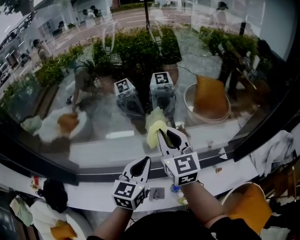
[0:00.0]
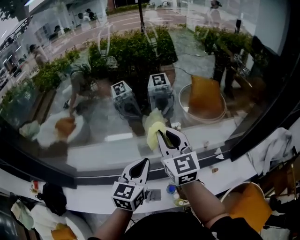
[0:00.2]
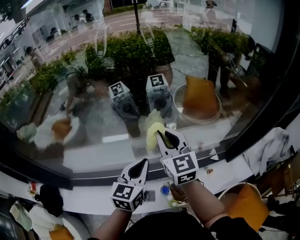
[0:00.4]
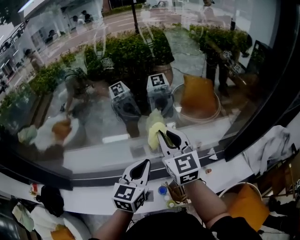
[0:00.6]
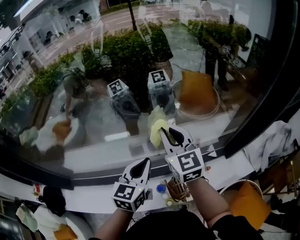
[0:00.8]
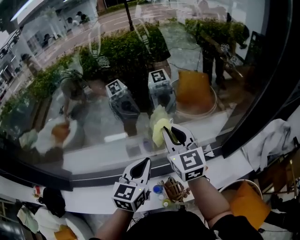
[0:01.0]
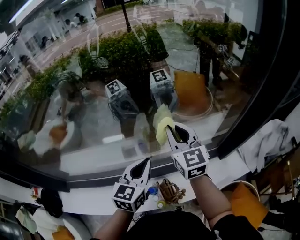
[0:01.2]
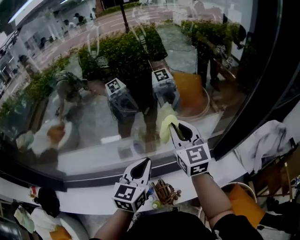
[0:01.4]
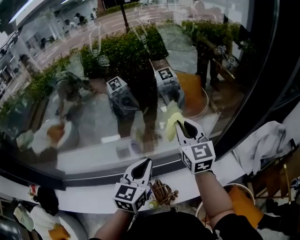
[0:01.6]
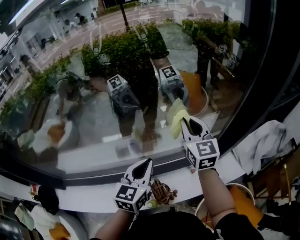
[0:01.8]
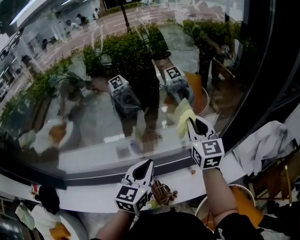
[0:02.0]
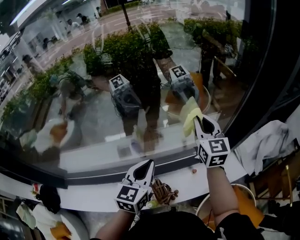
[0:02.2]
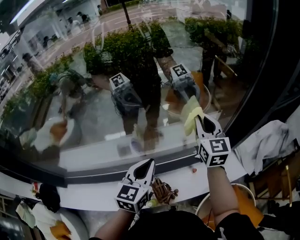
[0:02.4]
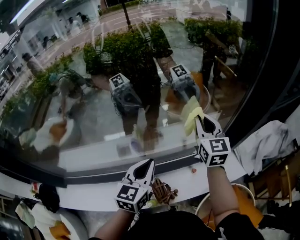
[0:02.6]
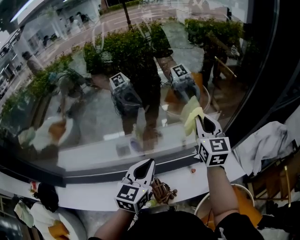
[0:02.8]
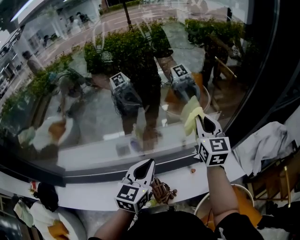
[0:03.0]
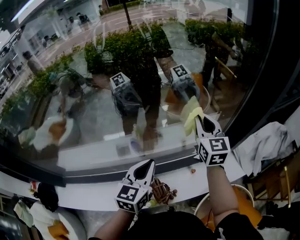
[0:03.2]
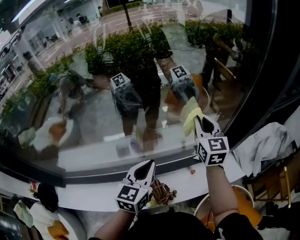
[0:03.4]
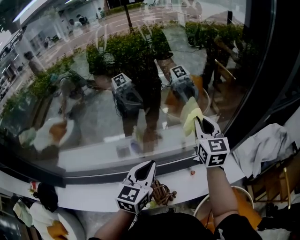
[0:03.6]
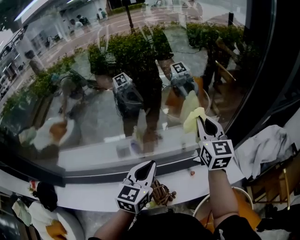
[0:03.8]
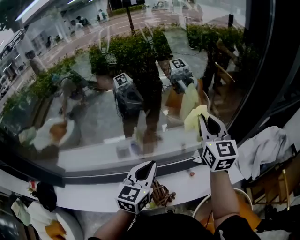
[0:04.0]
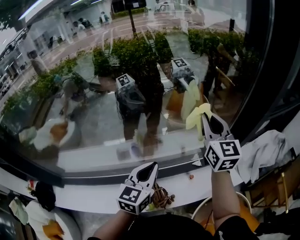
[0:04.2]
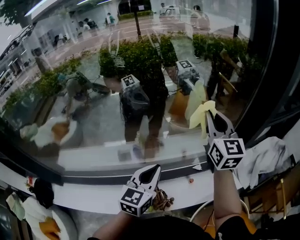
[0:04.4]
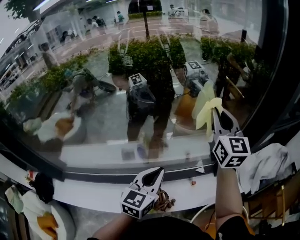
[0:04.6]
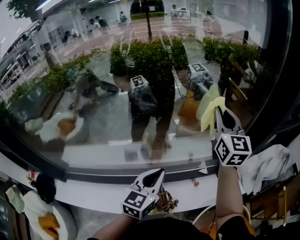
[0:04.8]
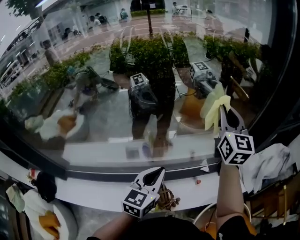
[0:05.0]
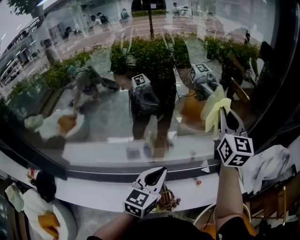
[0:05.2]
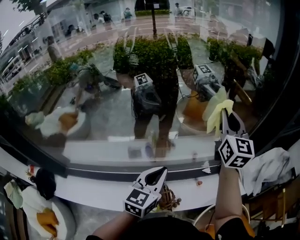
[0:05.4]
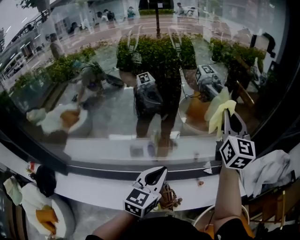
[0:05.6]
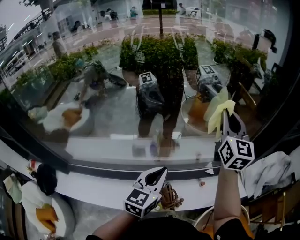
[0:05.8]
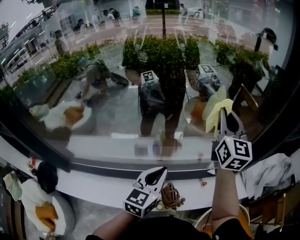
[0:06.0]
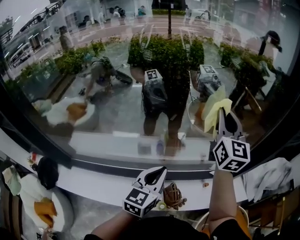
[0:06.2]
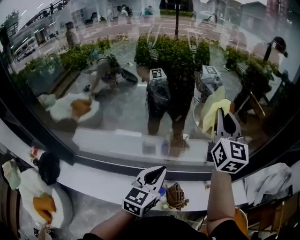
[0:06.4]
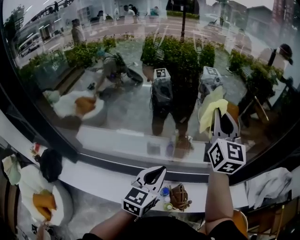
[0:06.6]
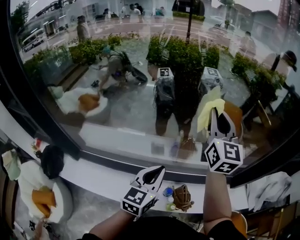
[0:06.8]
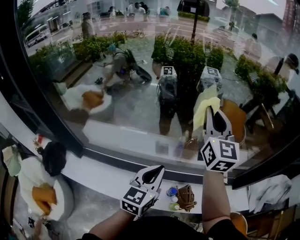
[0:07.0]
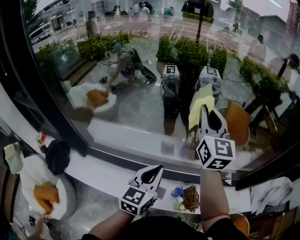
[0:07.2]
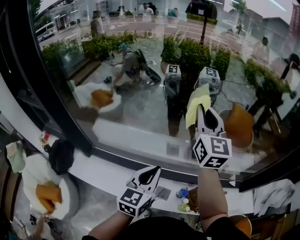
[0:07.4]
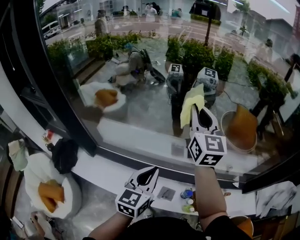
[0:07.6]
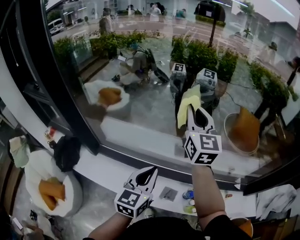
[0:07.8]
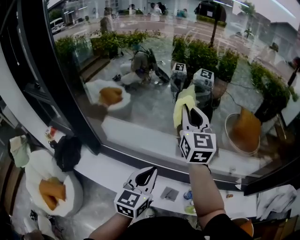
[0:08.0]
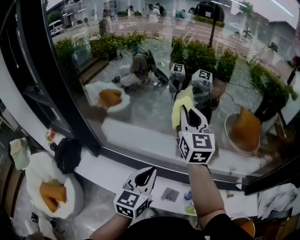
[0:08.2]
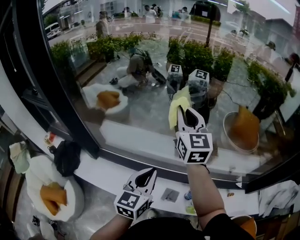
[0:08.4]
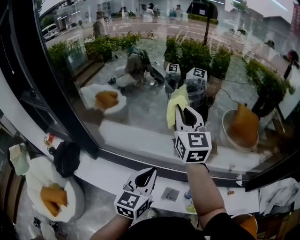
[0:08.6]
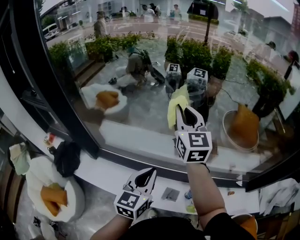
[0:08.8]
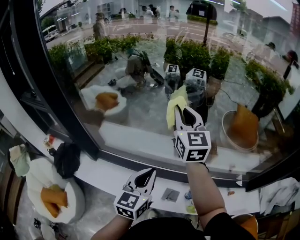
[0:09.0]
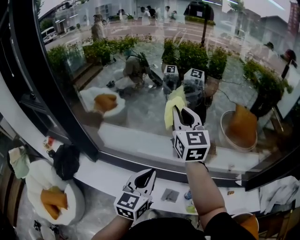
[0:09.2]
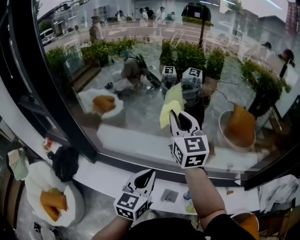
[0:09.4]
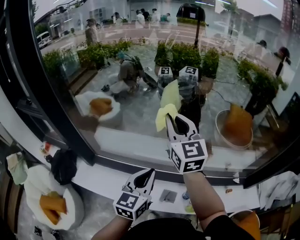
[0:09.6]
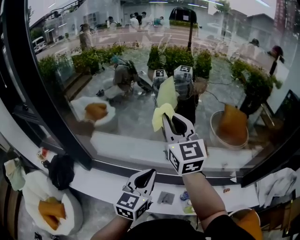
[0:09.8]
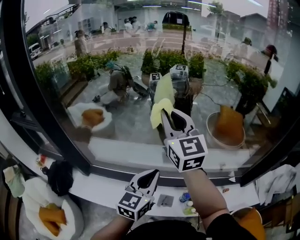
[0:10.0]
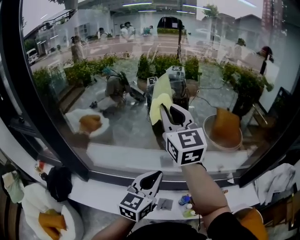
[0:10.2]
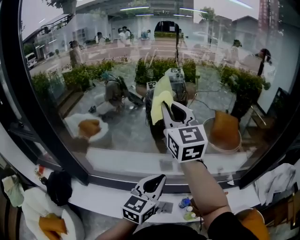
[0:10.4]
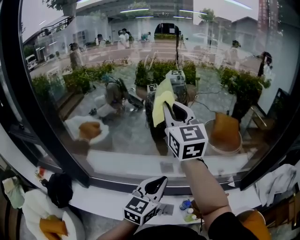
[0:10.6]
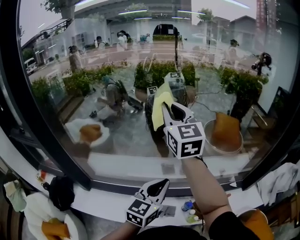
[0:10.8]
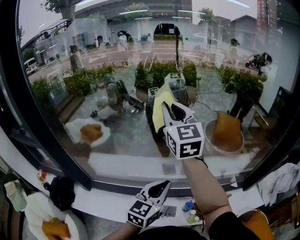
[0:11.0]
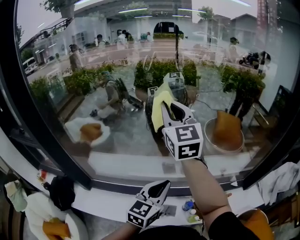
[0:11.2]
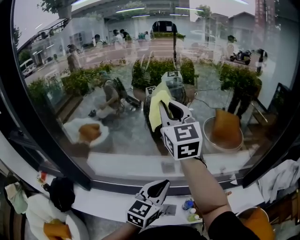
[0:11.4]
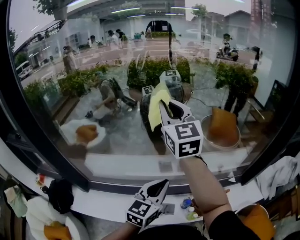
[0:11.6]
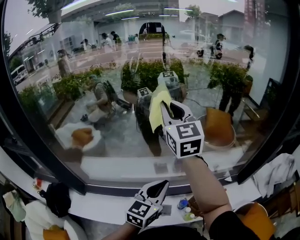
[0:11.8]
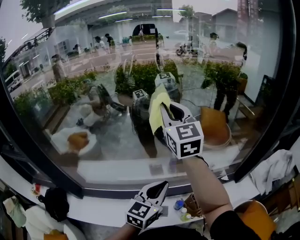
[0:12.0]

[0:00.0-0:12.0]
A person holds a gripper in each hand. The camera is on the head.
0:00.0 to 0:01.6: The two grippers go about 35 cm to the right.
0:01.6 to 0:03.0: The right gripper heads to the right, covering some 10 cm.
0:03.0 to 0:04.4: The right gripper heads upward, covering approximately 10 cm.
0:04.4 to 0:06.0: The left gripper heads to the left and backward, covering roughly 15 cm, while the right gripper travels to the left by about 15 cm.
0:06.0 to 0:07.6: The grippers both shift to the left by about 40 cm. The right gripper swivels some 20 degrees.
0:07.6 to 0:09.0: The right gripper travels to the left by about 10 cm.
0:09.0 to 0:10.4: The left gripper shifts approximately 10 cm to the right and upward, while the right gripper moves upward and to the right, approximately 15 cm.
0:10.4 to 0:12.0: The grippers both shift to the right by about 10 cm.

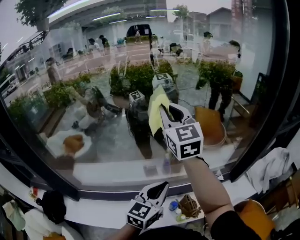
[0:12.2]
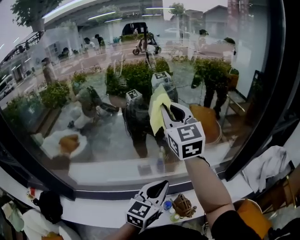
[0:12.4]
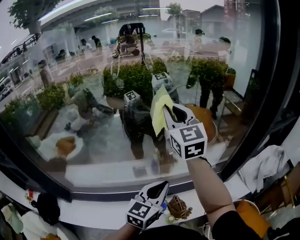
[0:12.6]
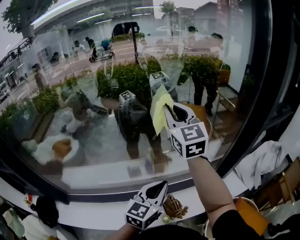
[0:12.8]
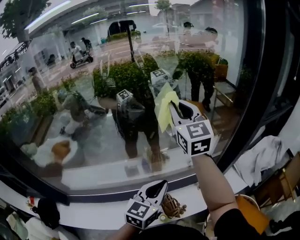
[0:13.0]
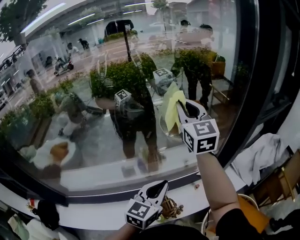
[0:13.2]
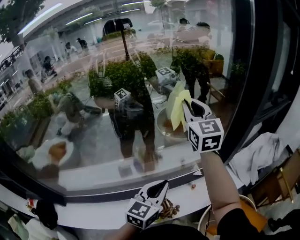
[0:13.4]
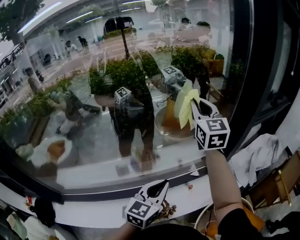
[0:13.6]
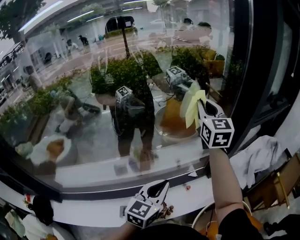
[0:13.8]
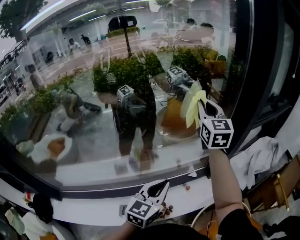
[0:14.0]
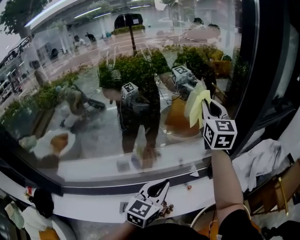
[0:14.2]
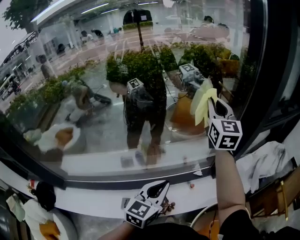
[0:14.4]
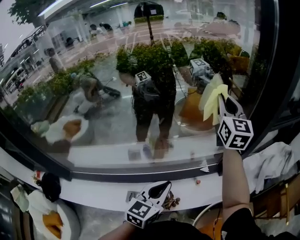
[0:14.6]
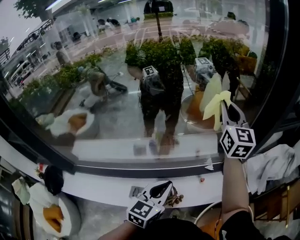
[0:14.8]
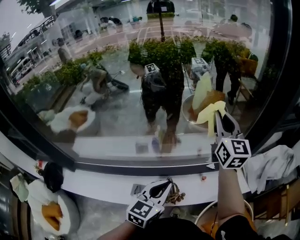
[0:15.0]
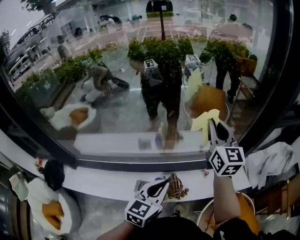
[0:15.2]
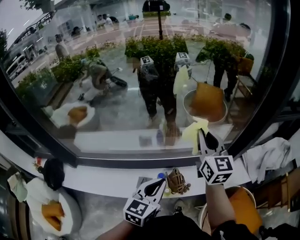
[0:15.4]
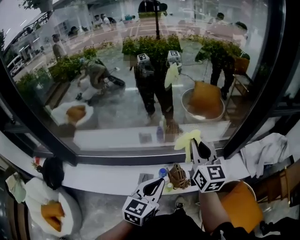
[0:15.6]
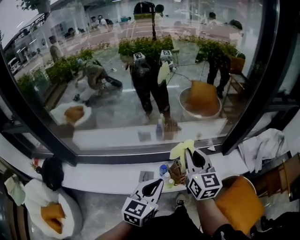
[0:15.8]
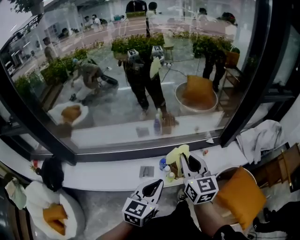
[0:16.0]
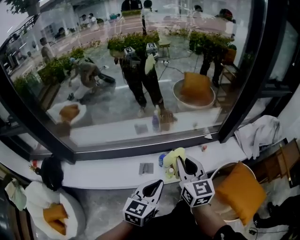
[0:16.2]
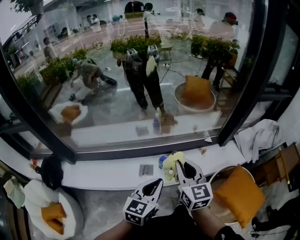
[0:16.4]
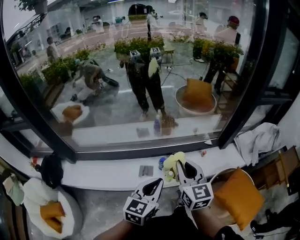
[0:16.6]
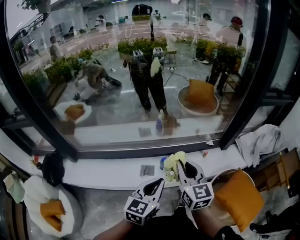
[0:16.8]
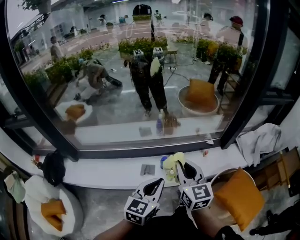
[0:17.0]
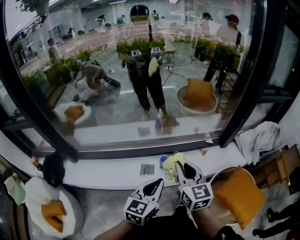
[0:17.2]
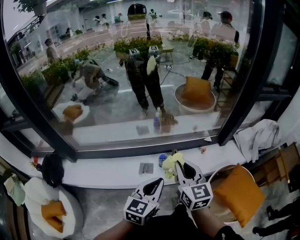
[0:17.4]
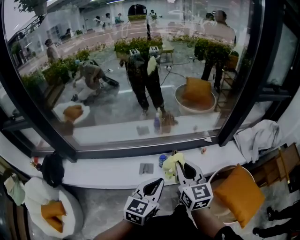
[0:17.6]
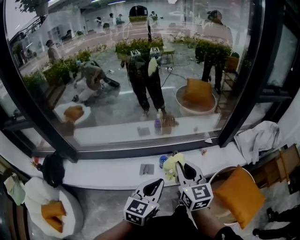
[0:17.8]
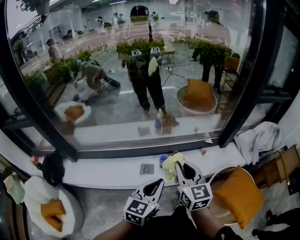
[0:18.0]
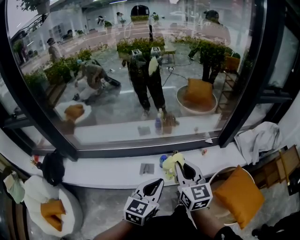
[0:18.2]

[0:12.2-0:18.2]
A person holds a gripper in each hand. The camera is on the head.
0:12.2 to 0:13.8: The left gripper shifts about 30 cm to the right. Meanwhile the right gripper shifts approximately 50 cm to the right, and turns by about 20 degrees.
0:13.8 to 0:15.2: The left gripper shifts approximately 20 cm backward and to the left. The right gripper moves backward, to the left and downward, approximately 25 cm.
0:15.2 to 0:16.6: The right gripper heads backward, to the left and downward, covering about 40 cm. The left gripper shifts approximately 20 cm backward and to the left.
0:16.6 to 0:18.2: The grippers stay close to where they were, moving slightly.

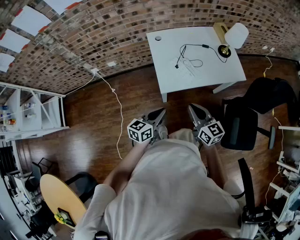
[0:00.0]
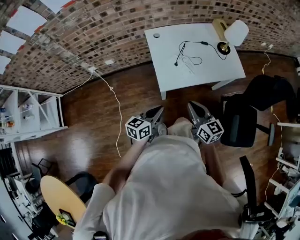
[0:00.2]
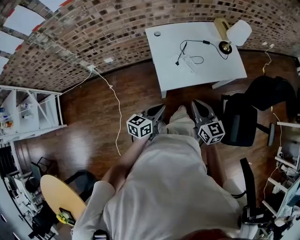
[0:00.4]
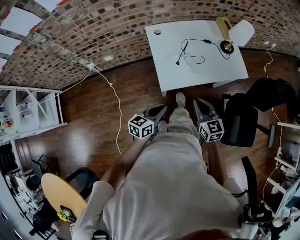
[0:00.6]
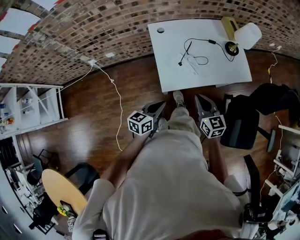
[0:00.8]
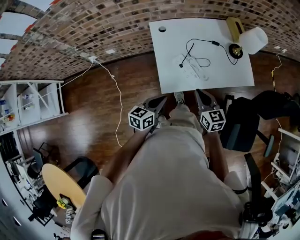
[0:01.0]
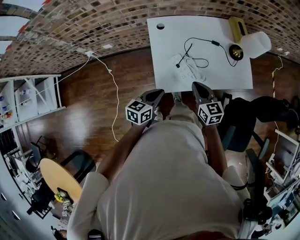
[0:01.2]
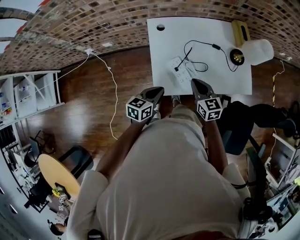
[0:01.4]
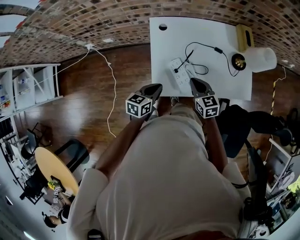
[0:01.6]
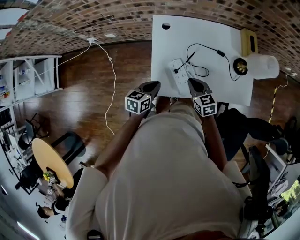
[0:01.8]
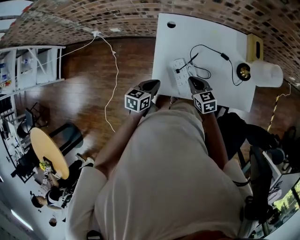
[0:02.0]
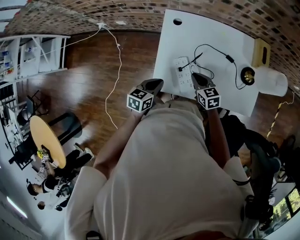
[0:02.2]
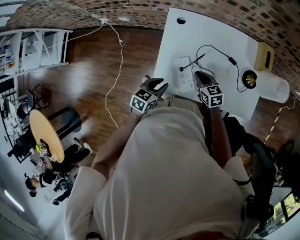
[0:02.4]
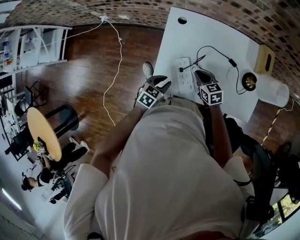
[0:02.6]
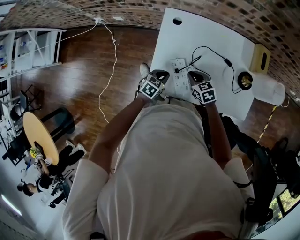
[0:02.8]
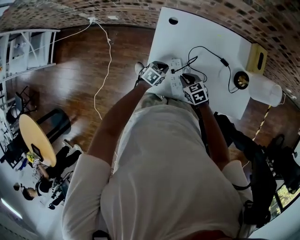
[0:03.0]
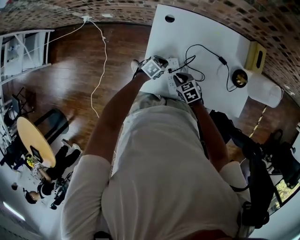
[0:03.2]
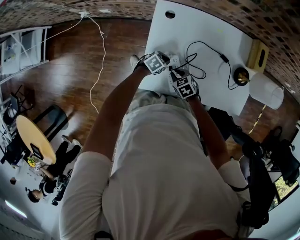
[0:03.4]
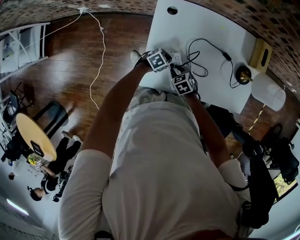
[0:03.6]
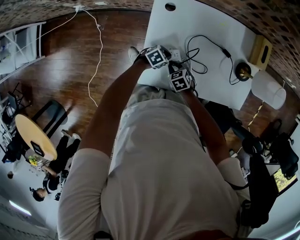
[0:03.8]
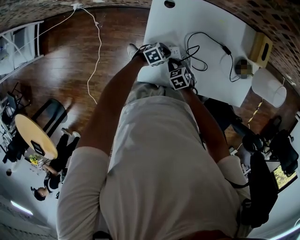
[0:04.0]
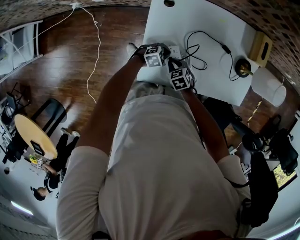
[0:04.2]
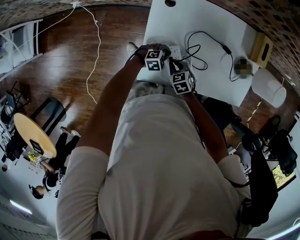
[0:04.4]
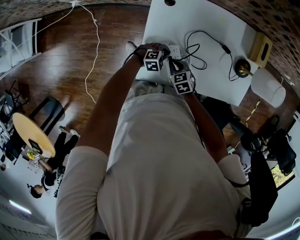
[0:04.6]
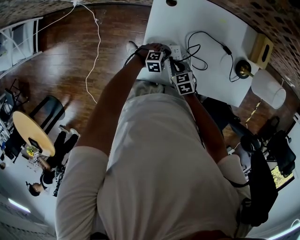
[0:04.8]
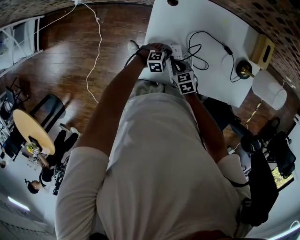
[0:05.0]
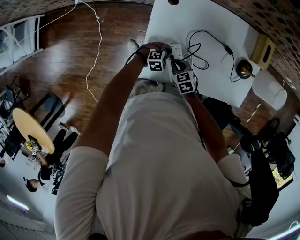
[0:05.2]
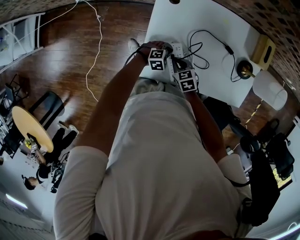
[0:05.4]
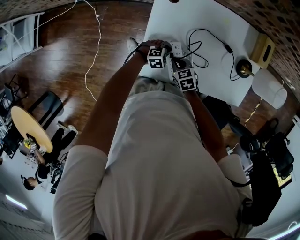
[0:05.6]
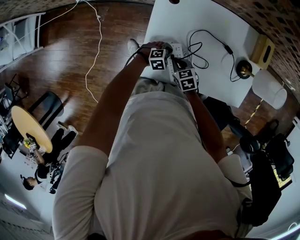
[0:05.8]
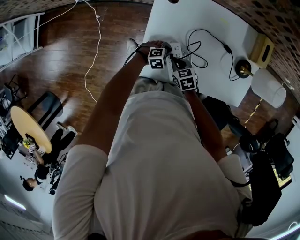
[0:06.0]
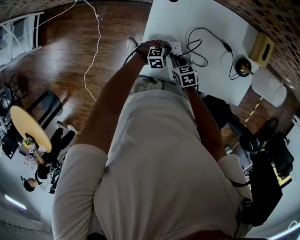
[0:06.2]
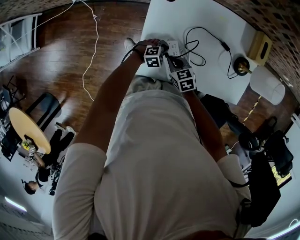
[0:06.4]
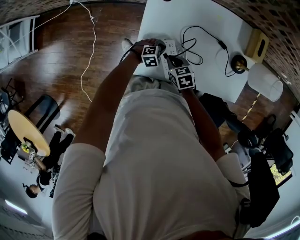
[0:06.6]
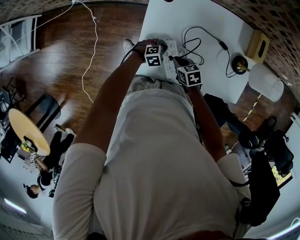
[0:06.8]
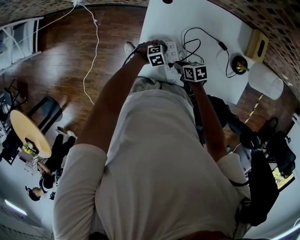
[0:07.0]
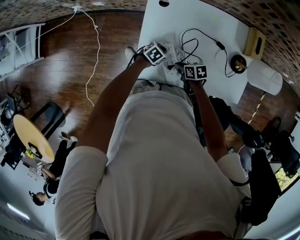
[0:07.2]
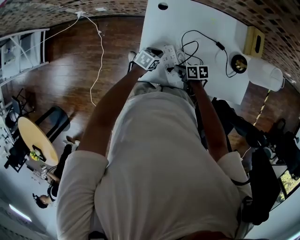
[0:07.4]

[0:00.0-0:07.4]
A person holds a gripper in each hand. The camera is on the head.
0:00.0 to 0:01.4: The grippers both shift forward by approximately 25 cm.
0:01.4 to 0:03.0: The right gripper is displaced downward by approximately 15 cm, and turns by approximately 40 degrees, while the left gripper travels downward and forward by roughly 25 cm, changes its angle by roughly 20 degrees, and opens, then closes again.
0:03.0 to 0:04.4: The two grippers go roughly 5 cm downward. The left gripper twists some 40 degrees clockwise, seen from behind.
0:04.4 to 0:06.0: The grippers move only a little.
0:06.0 to 0:07.4: The right gripper changes place by about 5 cm, and swivels about 40 degrees. Meanwhile the left gripper goes roughly 5 cm upward, and rolls counterclockwise, seen from behind, by approximately 40 degrees.
